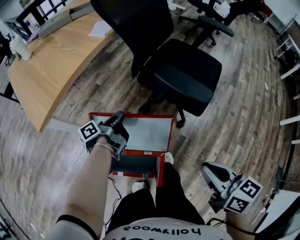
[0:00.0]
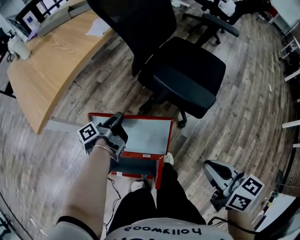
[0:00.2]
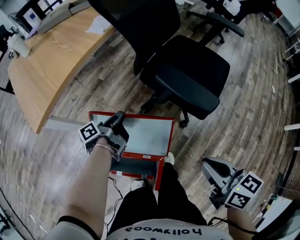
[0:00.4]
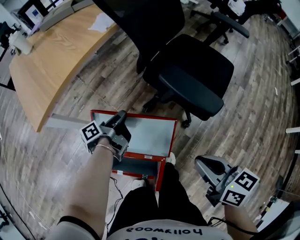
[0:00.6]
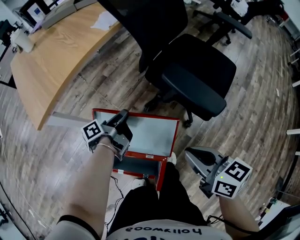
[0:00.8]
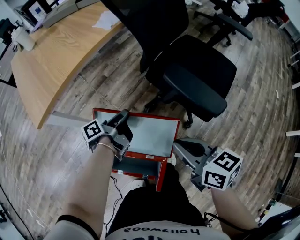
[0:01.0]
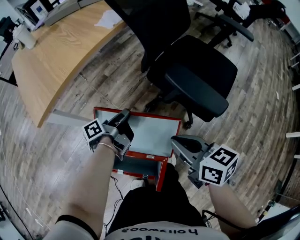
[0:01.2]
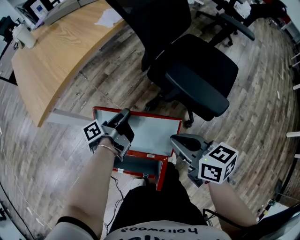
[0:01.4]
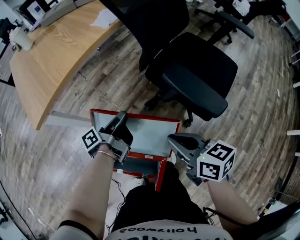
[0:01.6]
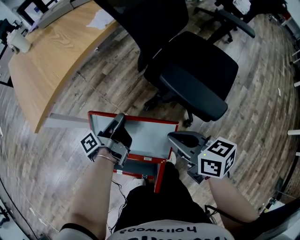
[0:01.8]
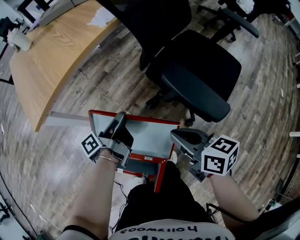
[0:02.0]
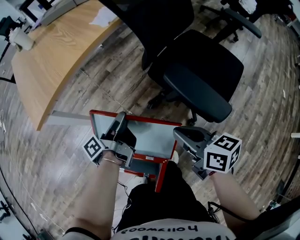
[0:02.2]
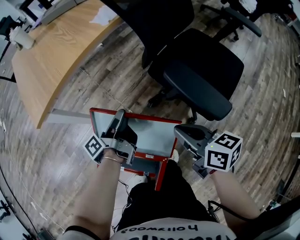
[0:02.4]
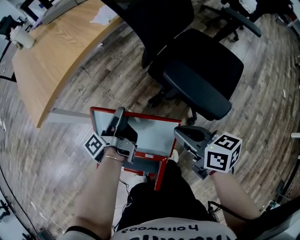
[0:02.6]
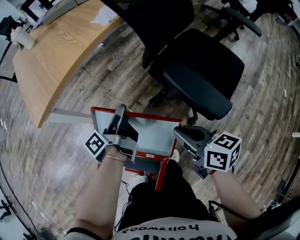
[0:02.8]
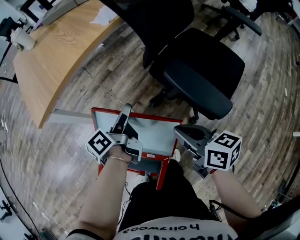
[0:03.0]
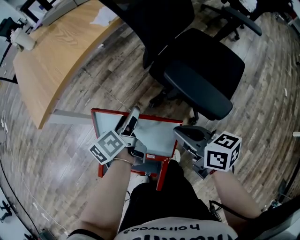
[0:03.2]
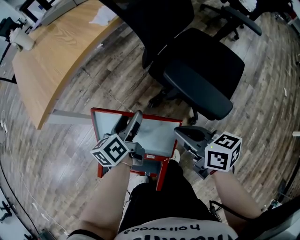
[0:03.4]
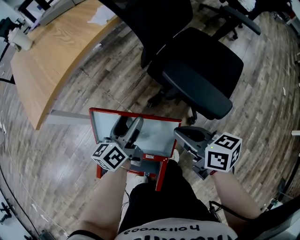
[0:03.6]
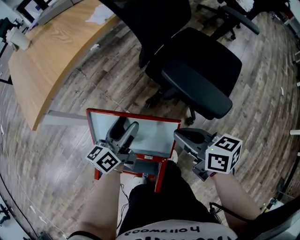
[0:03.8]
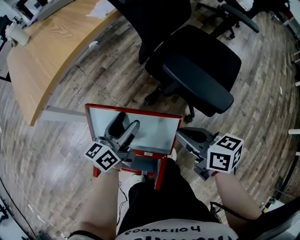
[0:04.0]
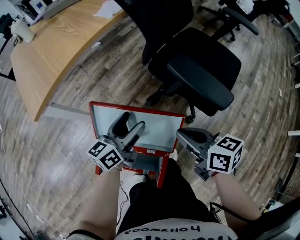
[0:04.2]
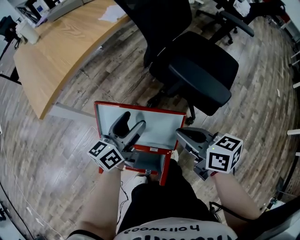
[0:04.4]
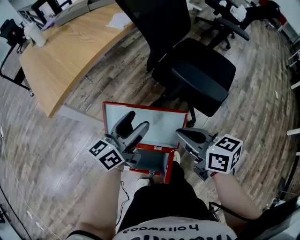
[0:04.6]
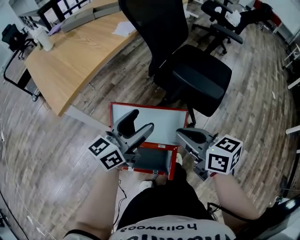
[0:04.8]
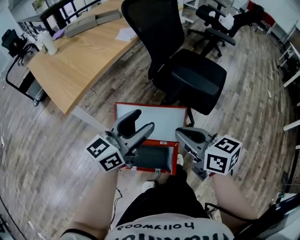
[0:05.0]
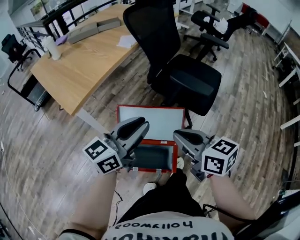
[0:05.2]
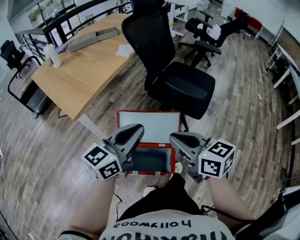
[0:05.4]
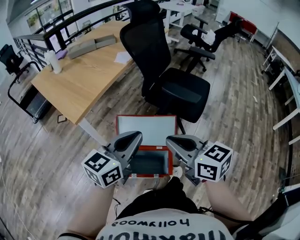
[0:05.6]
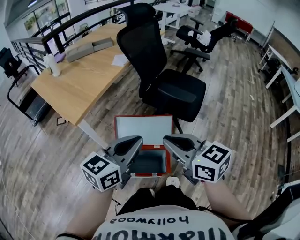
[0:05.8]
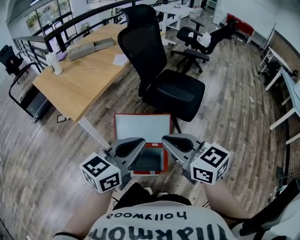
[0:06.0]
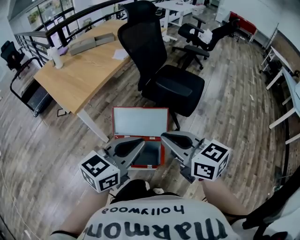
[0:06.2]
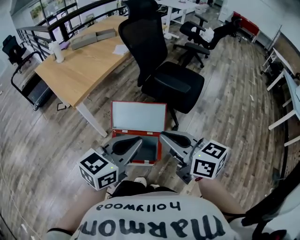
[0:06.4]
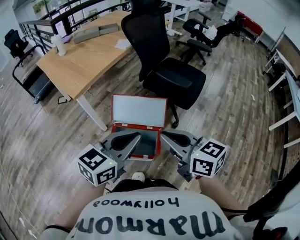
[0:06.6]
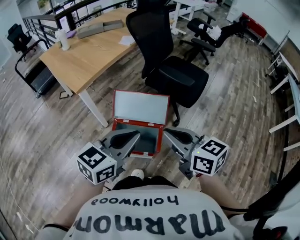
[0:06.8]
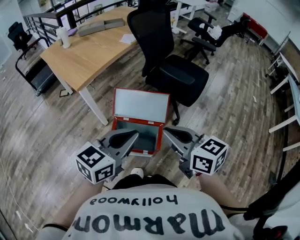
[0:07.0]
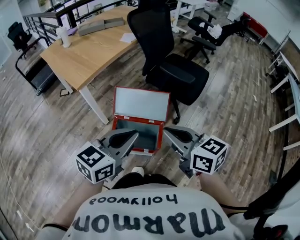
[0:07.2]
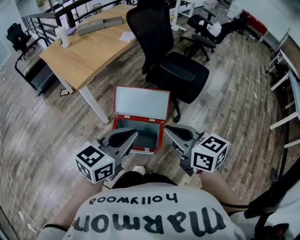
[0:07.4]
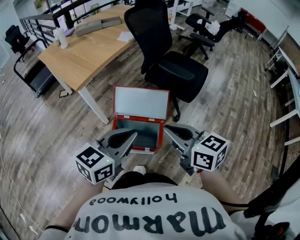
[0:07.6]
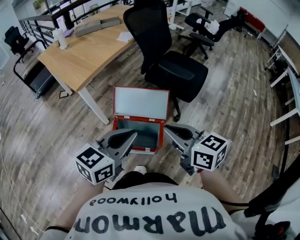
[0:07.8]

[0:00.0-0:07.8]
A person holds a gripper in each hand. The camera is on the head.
0:00.0 to 0:01.6: The right gripper moves forward and downward, some 15 cm.
0:01.6 to 0:03.2: The left gripper swivels roughly 40 degrees, and opens.
0:03.2 to 0:04.6: The right gripper travels backward and to the left by about 10 cm; the left gripper goes roughly 10 cm upward and backward, and changes its angle by roughly 40 degrees.
0:04.6 to 0:06.2: The right gripper moves upward and backward, approximately 30 cm, and changes its angle by some 20 degrees; the left gripper moves backward and upward, approximately 35 cm, swivels some 30 degrees, and closes up.
0:06.2 to 0:07.8: The right gripper shifts by some 5 cm. Meanwhile the left gripper changes place by about 5 cm.

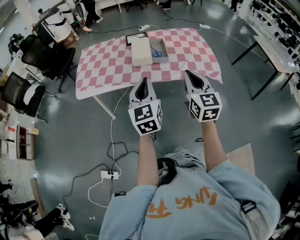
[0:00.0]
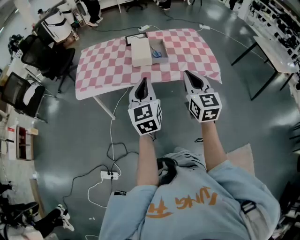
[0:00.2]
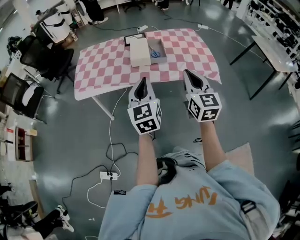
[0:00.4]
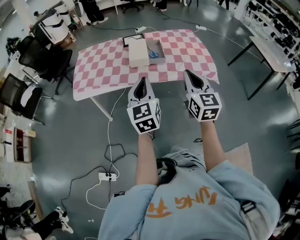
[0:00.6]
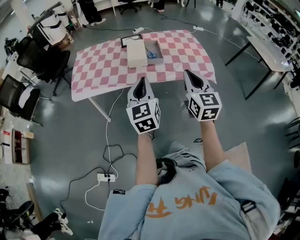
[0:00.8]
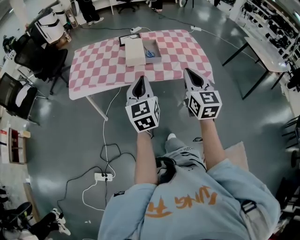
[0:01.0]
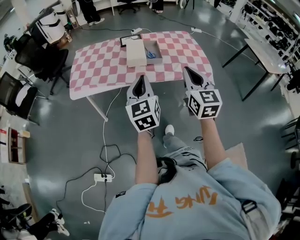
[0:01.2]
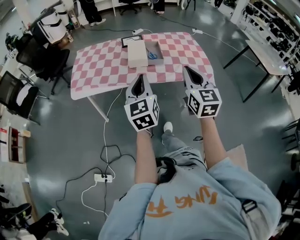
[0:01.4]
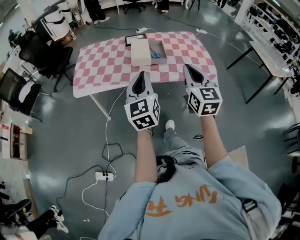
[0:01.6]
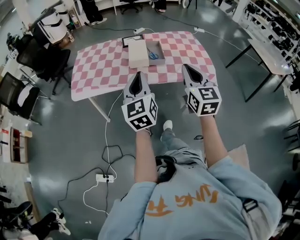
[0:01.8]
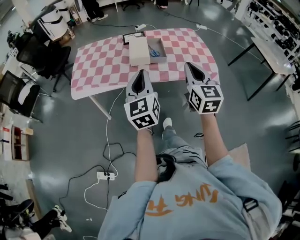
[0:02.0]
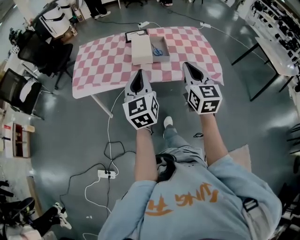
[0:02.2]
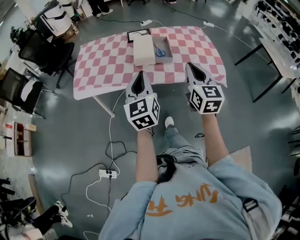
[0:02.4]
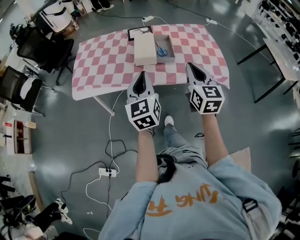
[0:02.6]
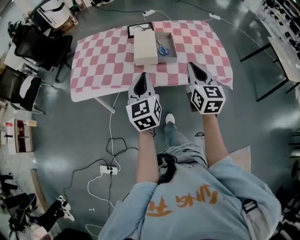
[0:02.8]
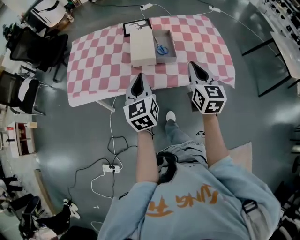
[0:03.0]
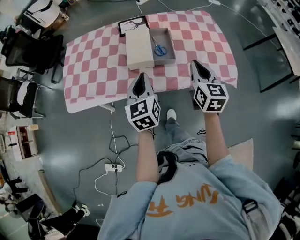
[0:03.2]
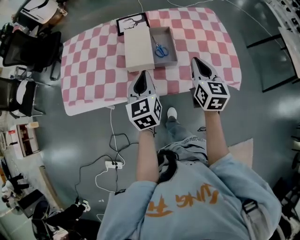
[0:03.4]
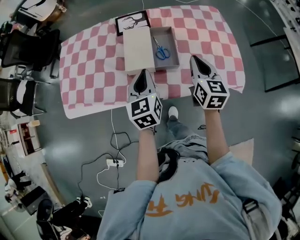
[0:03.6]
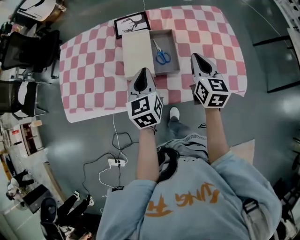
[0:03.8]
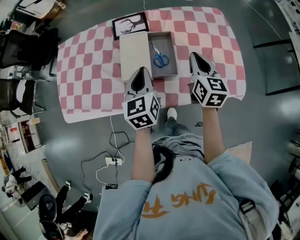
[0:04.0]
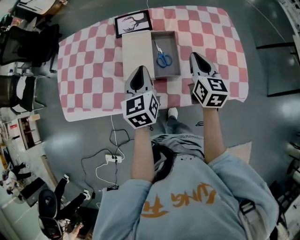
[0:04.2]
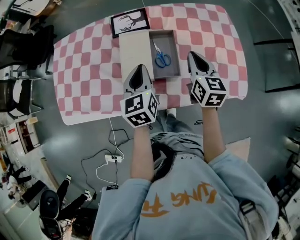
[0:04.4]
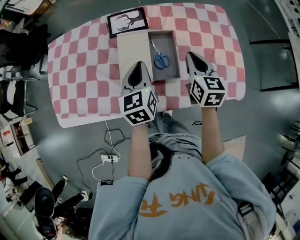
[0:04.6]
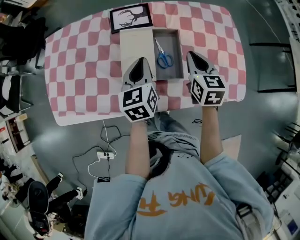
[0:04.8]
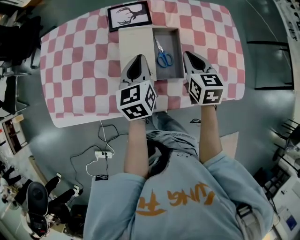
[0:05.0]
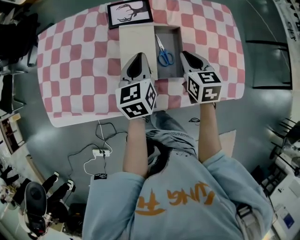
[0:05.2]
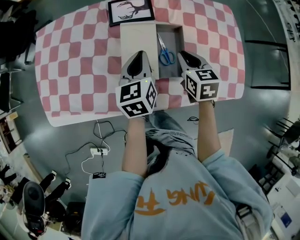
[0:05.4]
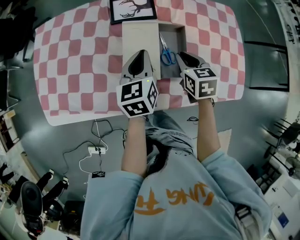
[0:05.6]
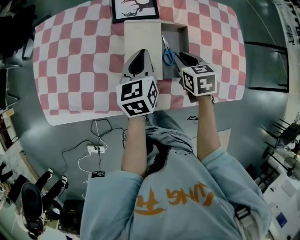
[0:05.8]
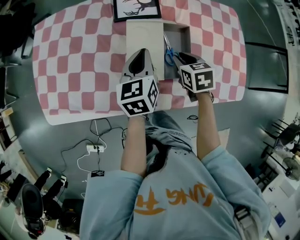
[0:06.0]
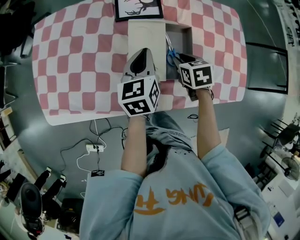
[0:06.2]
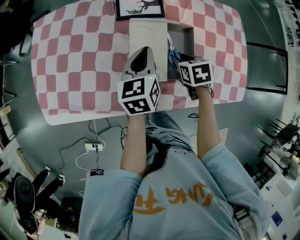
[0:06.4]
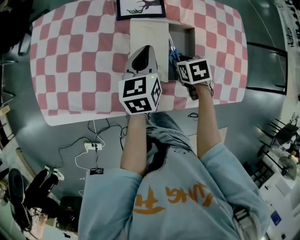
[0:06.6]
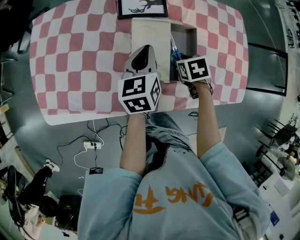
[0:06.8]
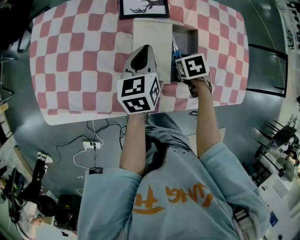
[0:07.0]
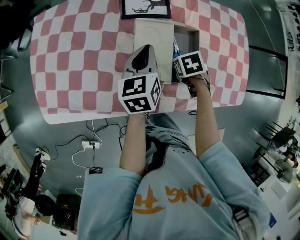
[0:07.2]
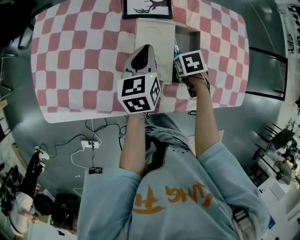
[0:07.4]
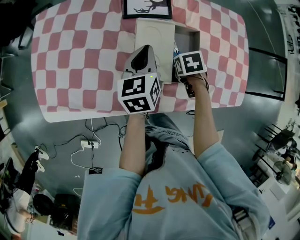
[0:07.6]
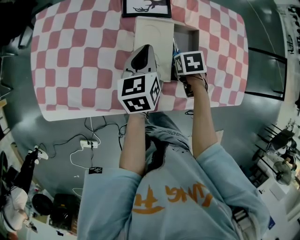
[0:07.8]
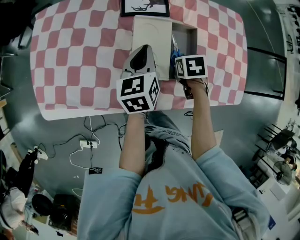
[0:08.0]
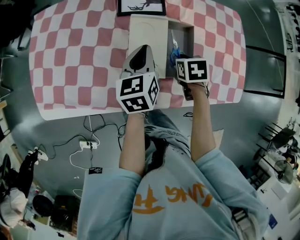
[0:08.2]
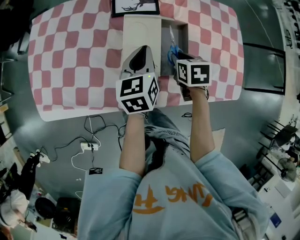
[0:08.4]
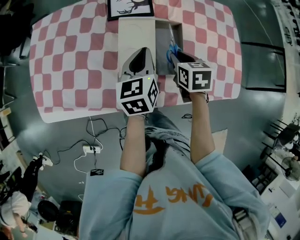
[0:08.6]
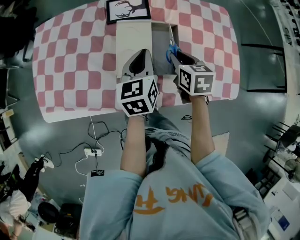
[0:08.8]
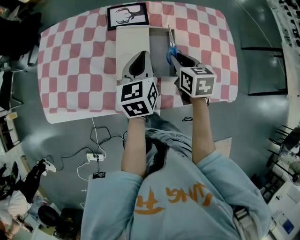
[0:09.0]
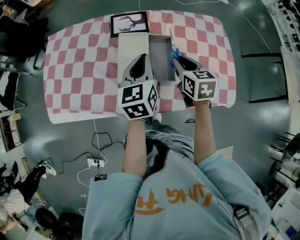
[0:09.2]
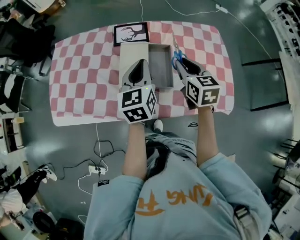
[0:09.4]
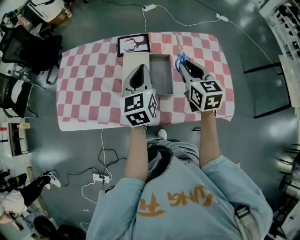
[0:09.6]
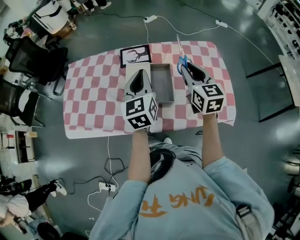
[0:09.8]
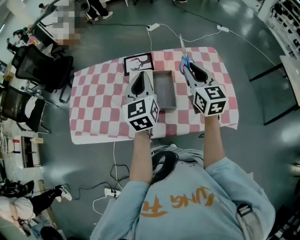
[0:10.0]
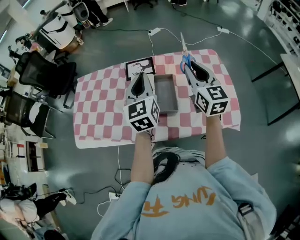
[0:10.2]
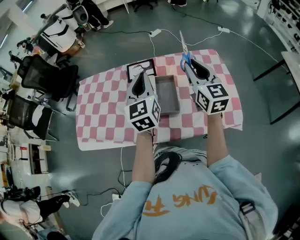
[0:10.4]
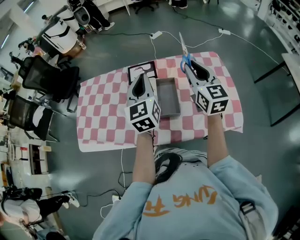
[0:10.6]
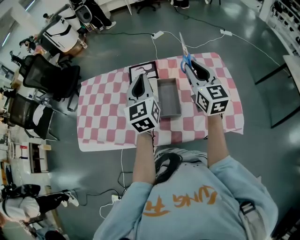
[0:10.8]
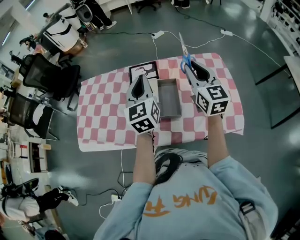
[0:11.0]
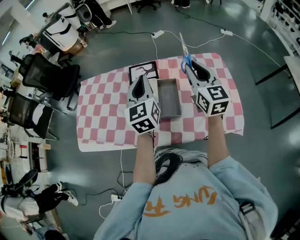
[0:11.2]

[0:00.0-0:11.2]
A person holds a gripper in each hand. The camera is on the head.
0:00.0 to 0:01.6: The grippers move only a little.
0:01.6 to 0:03.2: The grippers both shift forward and downward by about 30 cm.
0:03.2 to 0:04.8: The right gripper heads forward and downward, covering about 25 cm; the left gripper moves forward, roughly 20 cm.
0:04.8 to 0:06.4: The left gripper changes place by approximately 5 cm. The right gripper moves downward and to the left, approximately 15 cm, tilts its fingers some 30 degrees downward, and opens up.
0:06.4 to 0:08.0: The grippers make only small movements.
0:08.0 to 0:09.6: The right gripper heads upward, covering roughly 25 cm, and angles its fingers upward, by about 50 degrees, while the left gripper travels upward by some 15 cm, and changes its angle by approximately 20 degrees.
0:09.6 to 0:11.2: Both grippers travel together upward, some 10 cm.

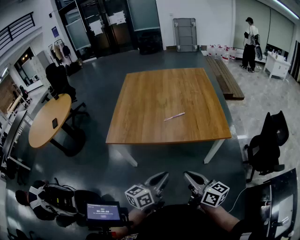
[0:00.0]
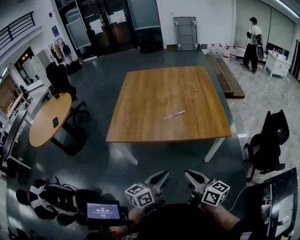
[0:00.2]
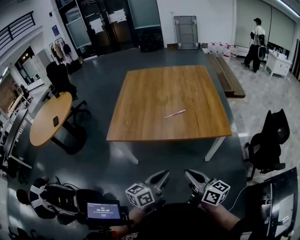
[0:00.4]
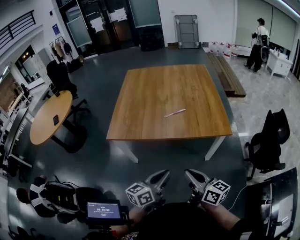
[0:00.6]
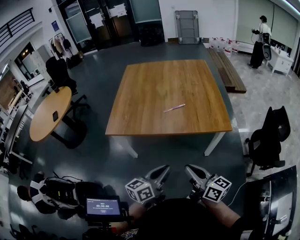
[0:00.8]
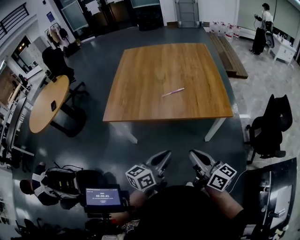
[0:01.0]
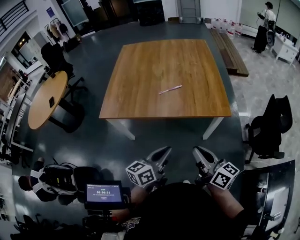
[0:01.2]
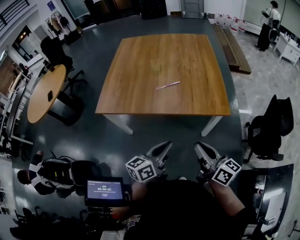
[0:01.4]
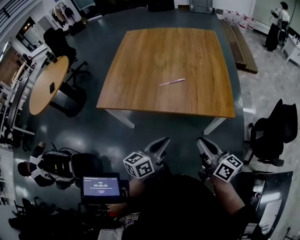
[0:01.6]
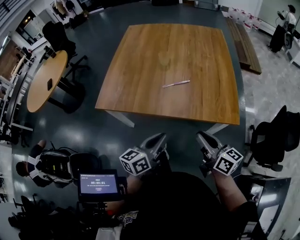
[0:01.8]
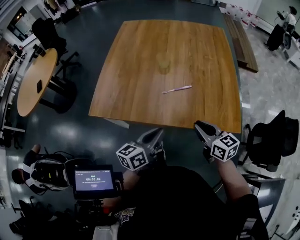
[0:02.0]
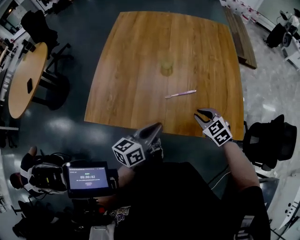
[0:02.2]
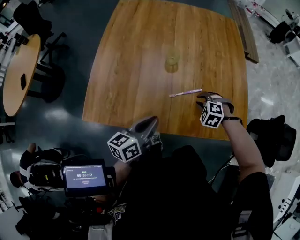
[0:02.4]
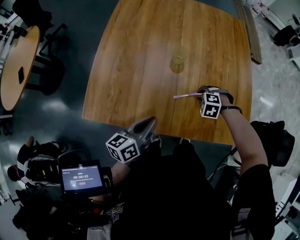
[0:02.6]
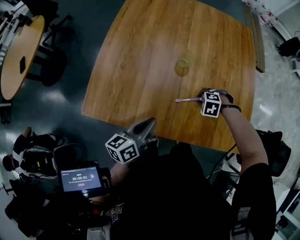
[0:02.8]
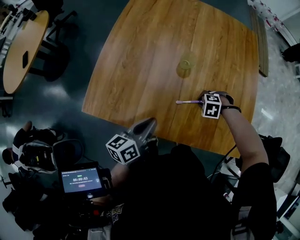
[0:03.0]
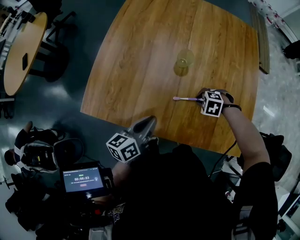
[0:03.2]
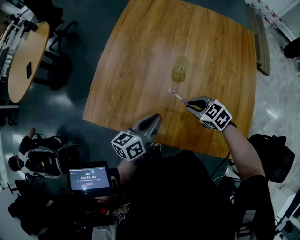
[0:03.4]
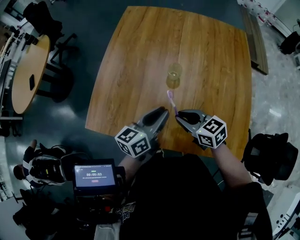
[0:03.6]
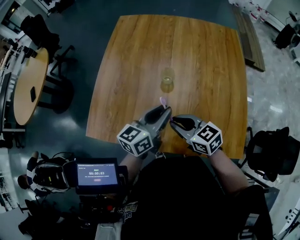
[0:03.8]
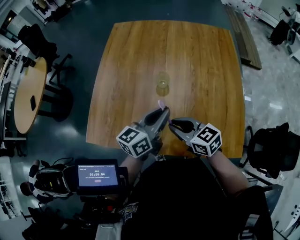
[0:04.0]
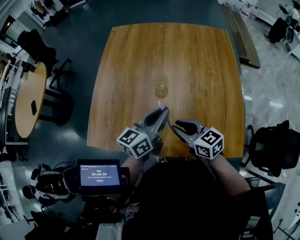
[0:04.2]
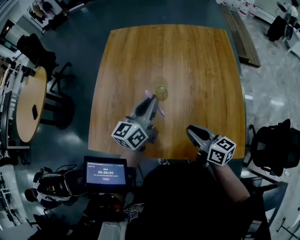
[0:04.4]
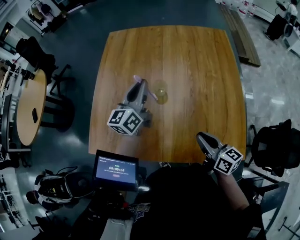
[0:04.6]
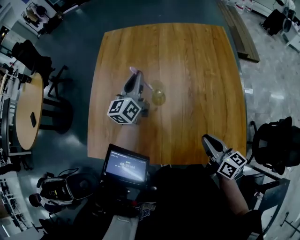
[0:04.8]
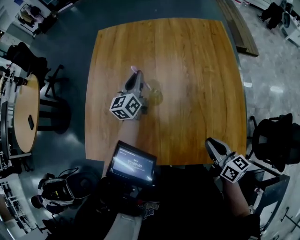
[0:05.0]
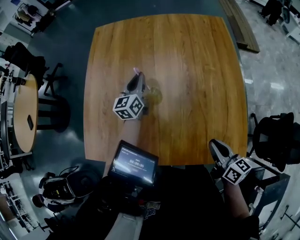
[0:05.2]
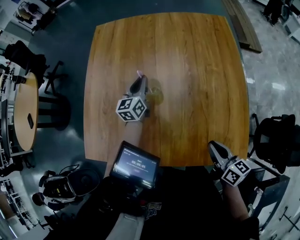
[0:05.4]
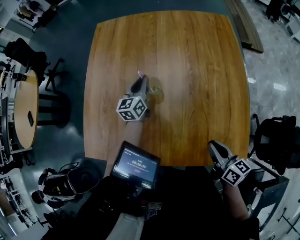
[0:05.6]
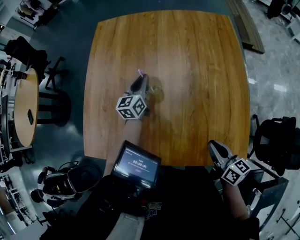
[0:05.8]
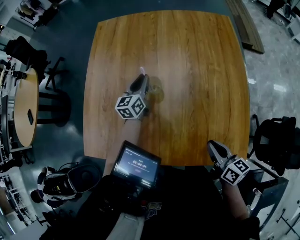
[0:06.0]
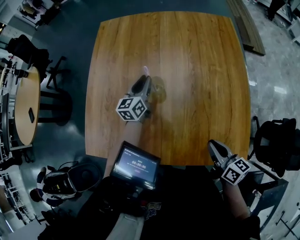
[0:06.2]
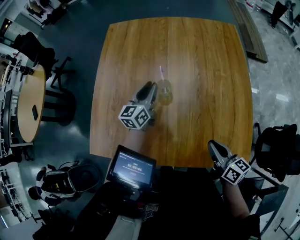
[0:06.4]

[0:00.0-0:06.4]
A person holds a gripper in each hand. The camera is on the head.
0:00.0 to 0:01.6: The grippers both shift to the right and forward by approximately 10 cm.
0:01.6 to 0:03.2: The right gripper moves about 50 cm, and tips its fingers downward by some 80 degrees, while the left gripper shifts by roughly 30 cm.
0:03.2 to 0:04.8: The right gripper shifts some 20 cm upward, and tilts its fingers roughly 70 degrees upward; the left gripper ends up about 30 cm from where it was, and turns by about 30 degrees.
0:04.8 to 0:06.4: The left gripper shifts some 10 cm downward.
